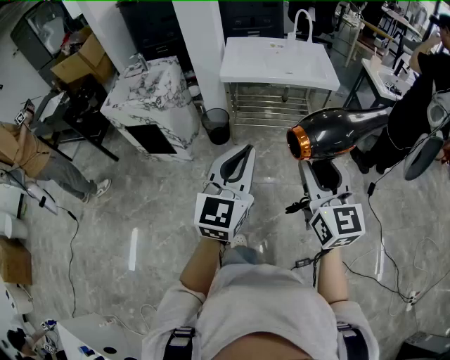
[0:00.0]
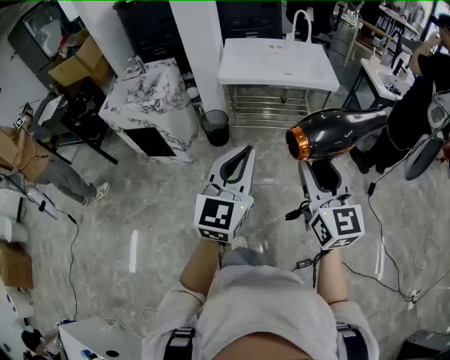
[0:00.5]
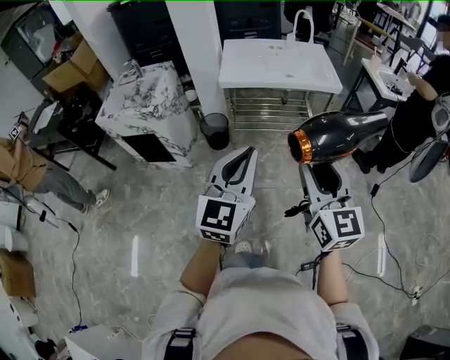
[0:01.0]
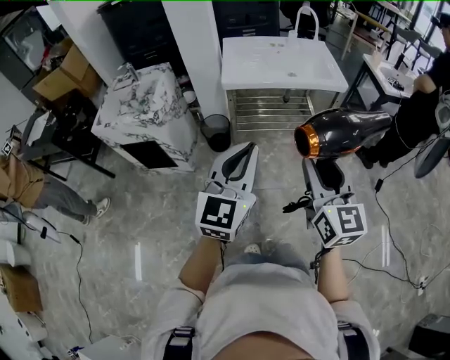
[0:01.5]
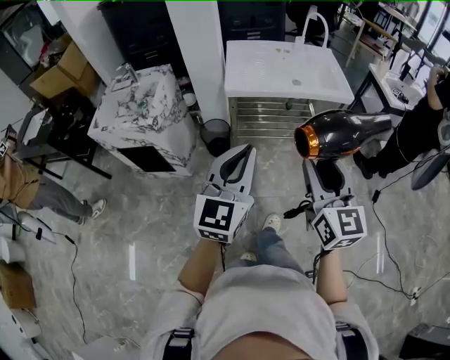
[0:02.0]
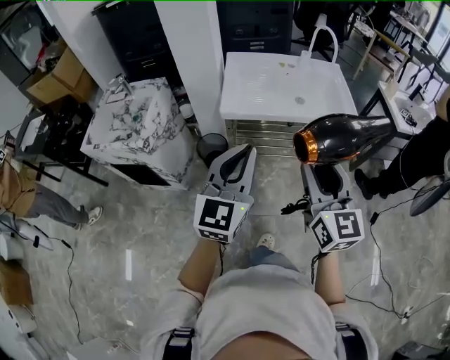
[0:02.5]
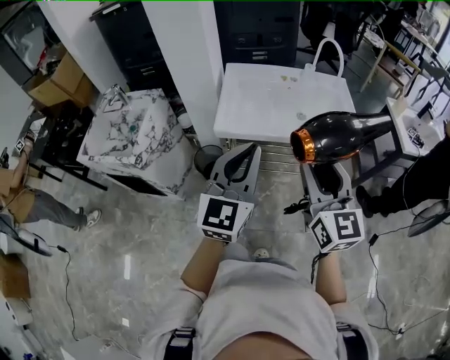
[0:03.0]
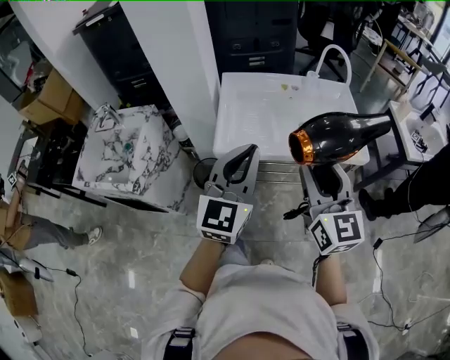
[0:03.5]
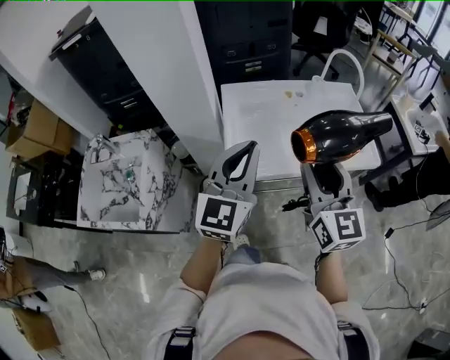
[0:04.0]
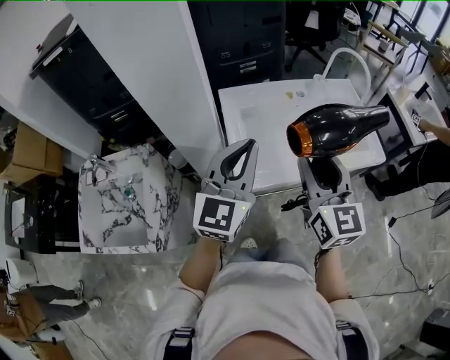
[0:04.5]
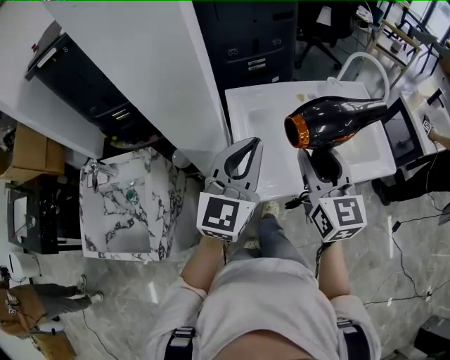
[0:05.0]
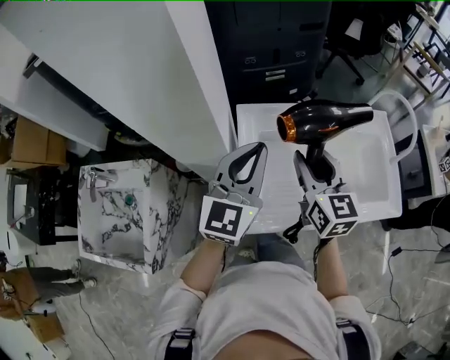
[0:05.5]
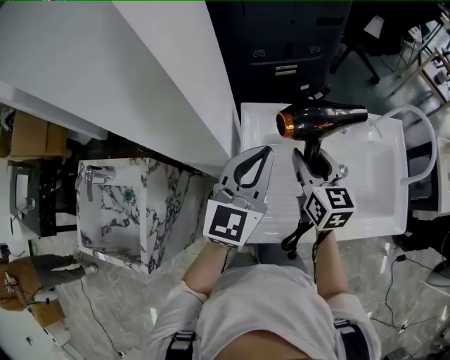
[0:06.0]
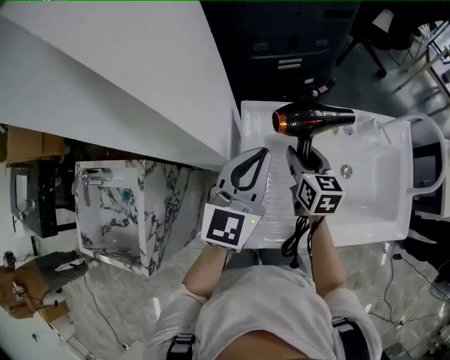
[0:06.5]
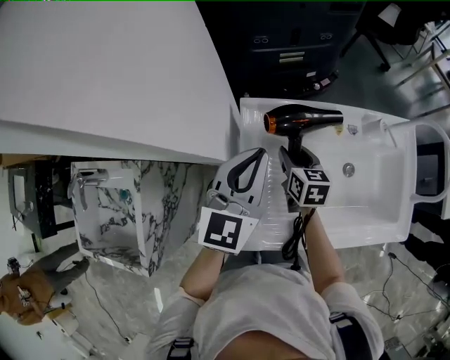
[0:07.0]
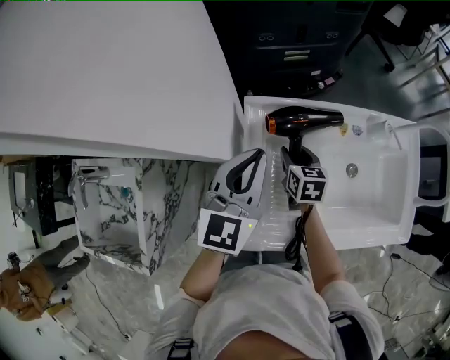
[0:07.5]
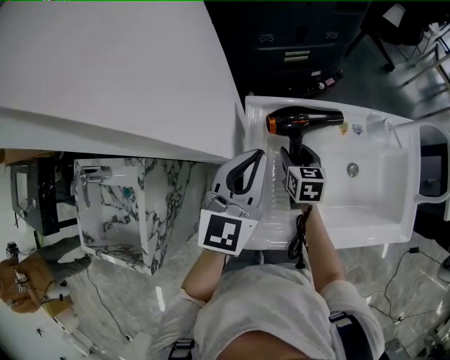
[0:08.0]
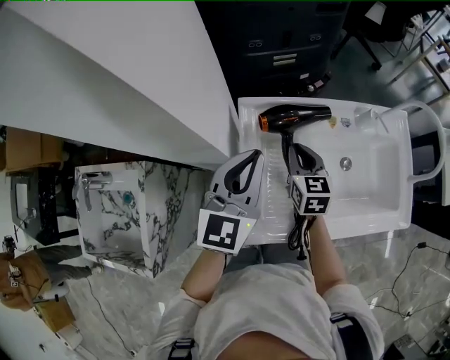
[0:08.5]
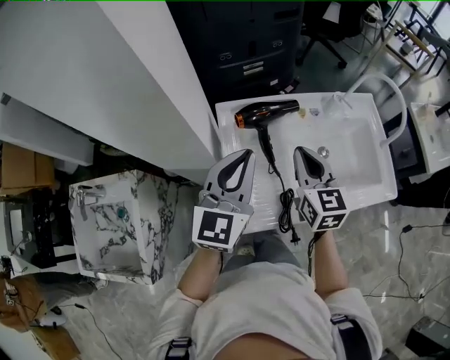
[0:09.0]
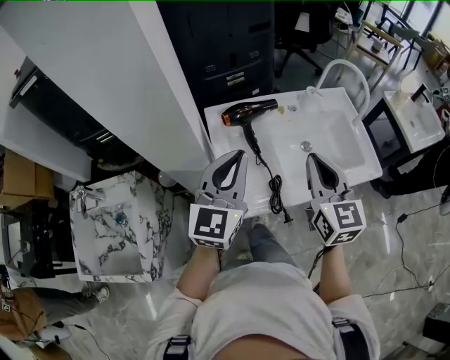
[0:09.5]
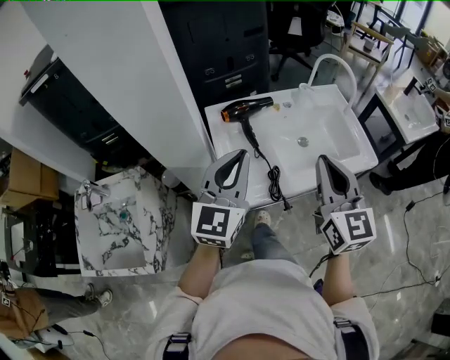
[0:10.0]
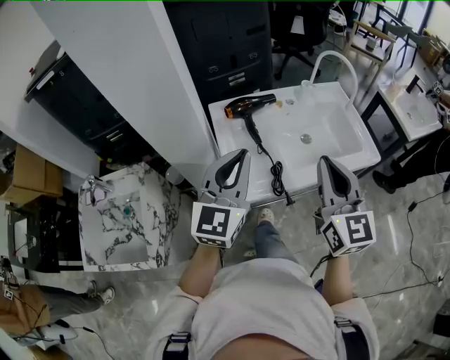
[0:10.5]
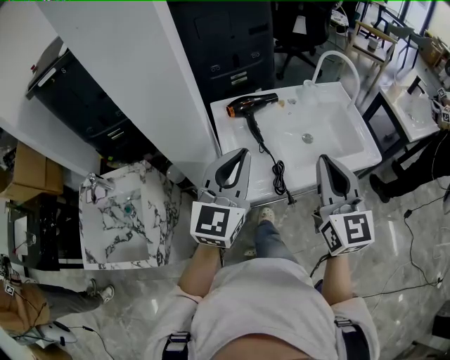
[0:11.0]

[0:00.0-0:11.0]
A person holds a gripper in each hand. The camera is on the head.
0:00.0 to 0:02.0: The grippers both shift forward and to the left by roughly 20 cm.
0:02.0 to 0:03.5: The grippers both shift forward by some 35 cm.
0:03.5 to 0:05.5: Both grippers travel together forward and to the left, approximately 35 cm.
0:05.5 to 0:07.5: The left gripper shifts roughly 15 cm forward and downward. The right gripper moves downward and forward, roughly 30 cm, and changes its angle by about 30 degrees.
0:07.5 to 0:09.0: The right gripper moves upward and backward, roughly 25 cm, turns by approximately 30 degrees, and closes. Meanwhile the left gripper shifts roughly 10 cm backward and upward.
0:09.0 to 0:11.0: The right gripper goes about 25 cm backward and upward, and turns by approximately 20 degrees; the left gripper travels backward by some 15 cm.

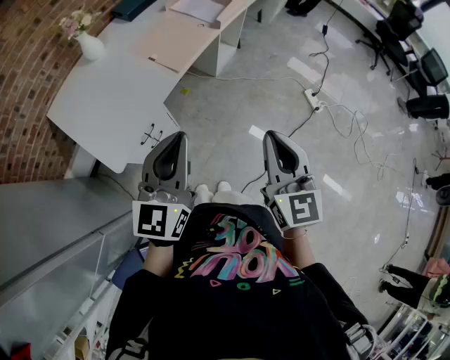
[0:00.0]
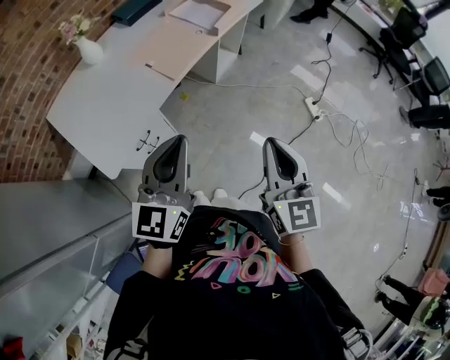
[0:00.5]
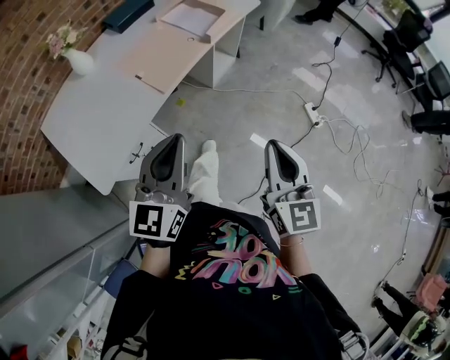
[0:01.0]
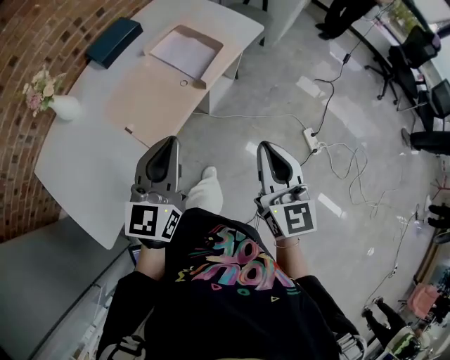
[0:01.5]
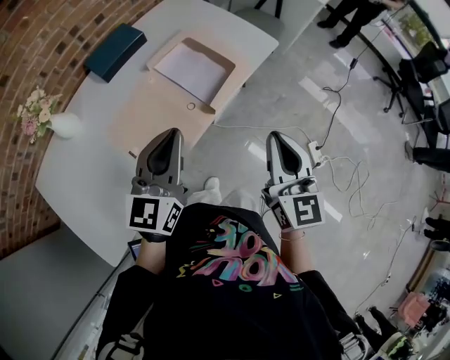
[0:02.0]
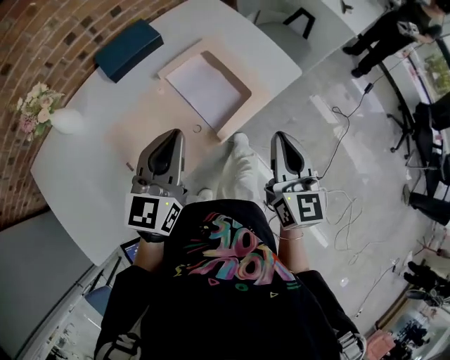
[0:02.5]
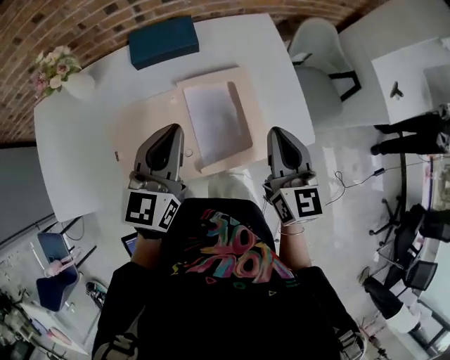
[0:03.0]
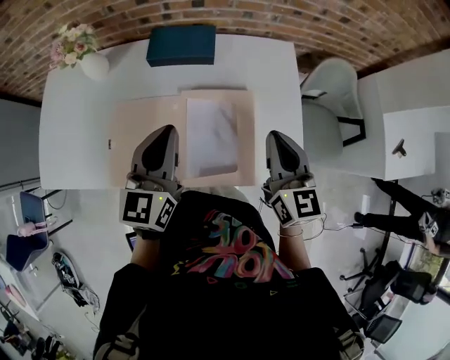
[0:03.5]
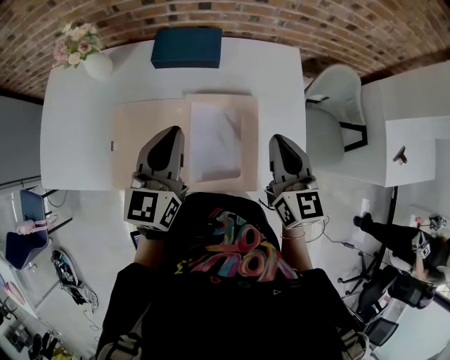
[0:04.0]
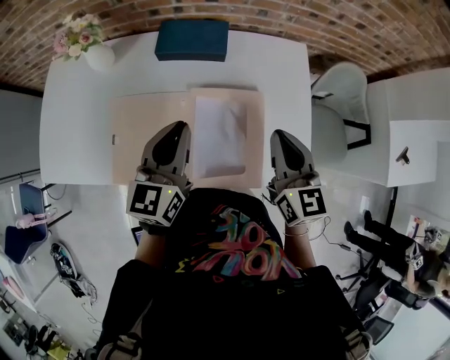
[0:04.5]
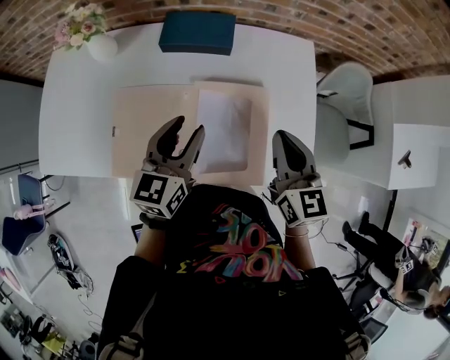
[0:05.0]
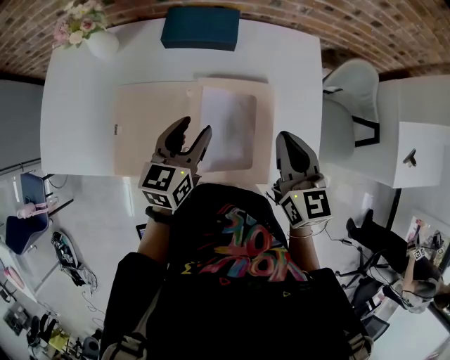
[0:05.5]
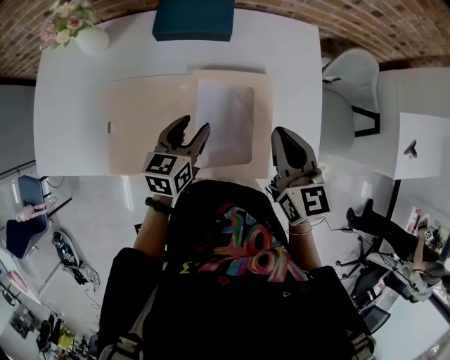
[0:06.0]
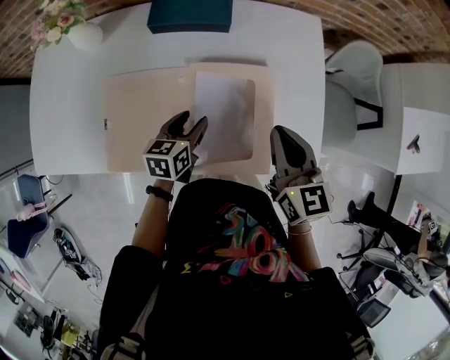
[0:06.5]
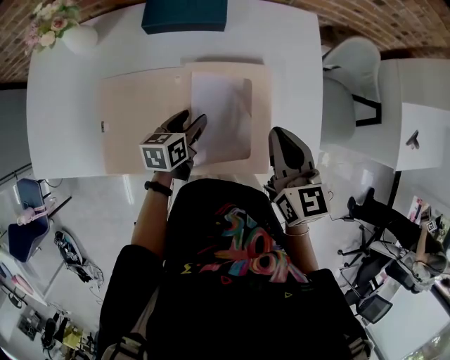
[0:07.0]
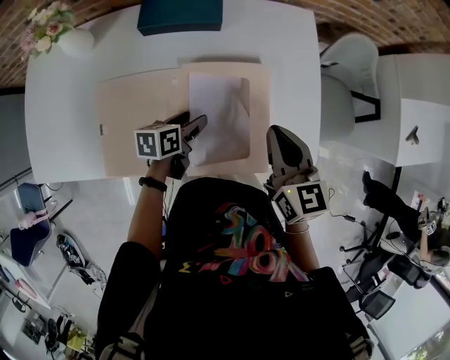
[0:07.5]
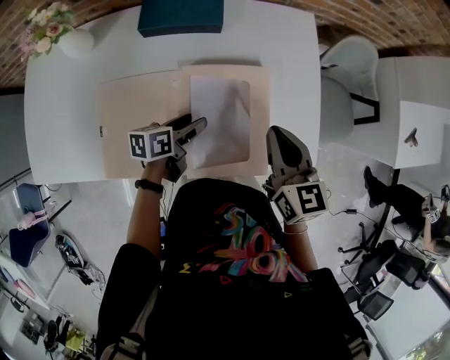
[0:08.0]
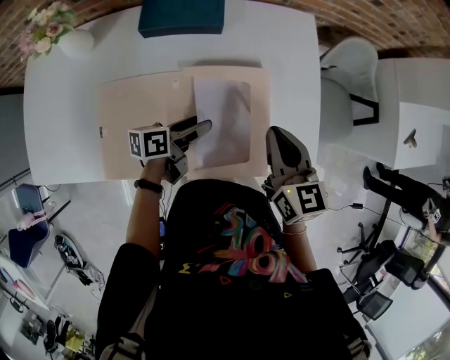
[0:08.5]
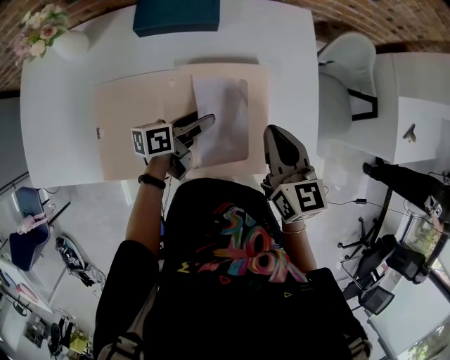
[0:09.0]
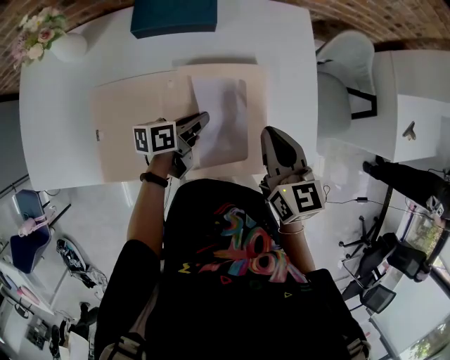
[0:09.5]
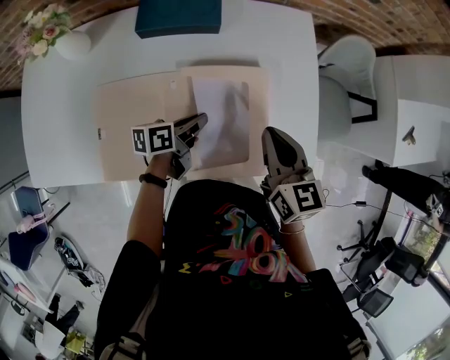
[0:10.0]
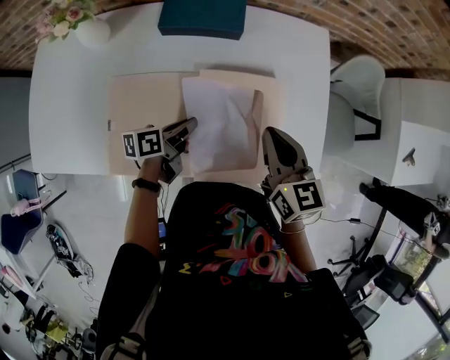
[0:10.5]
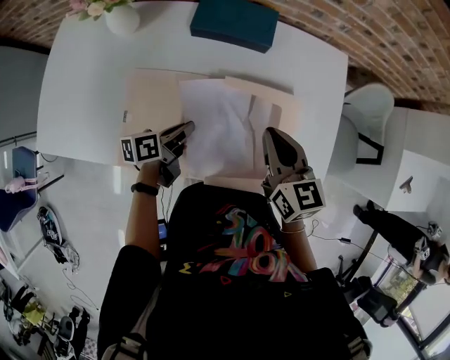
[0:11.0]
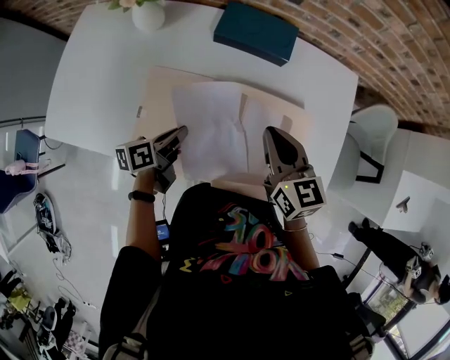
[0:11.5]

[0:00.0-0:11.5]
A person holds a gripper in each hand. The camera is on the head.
0:00.0 to 0:02.0: The two grippers travel together, forward, some 50 cm.
0:02.0 to 0:04.0: The right gripper moves approximately 40 cm, and swivels about 50 degrees. The left gripper moves about 30 cm, and changes its angle by roughly 50 degrees.
0:04.0 to 0:06.0: The left gripper goes some 20 cm downward, changes its angle by some 30 degrees, and opens up; the right gripper moves downward, approximately 5 cm.
0:06.0 to 0:07.5: The left gripper moves downward, some 10 cm, and changes its angle by approximately 30 degrees.
0:07.5 to 0:09.5: The left gripper closes its fingers.
0:09.5 to 0:11.5: Both grippers move to the left, some 15 cm. The left gripper changes its angle by roughly 30 degrees; the right gripper swivels approximately 20 degrees.

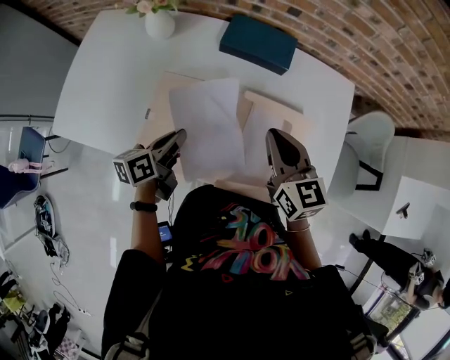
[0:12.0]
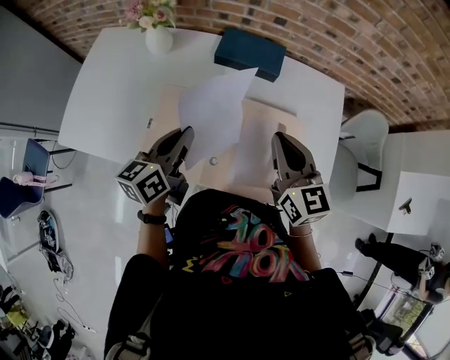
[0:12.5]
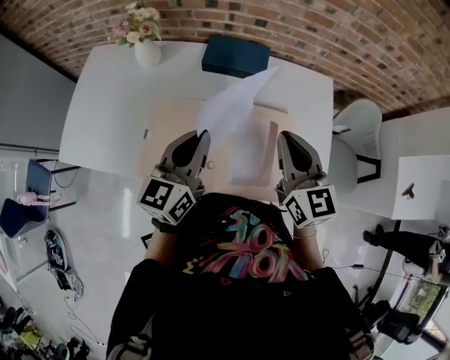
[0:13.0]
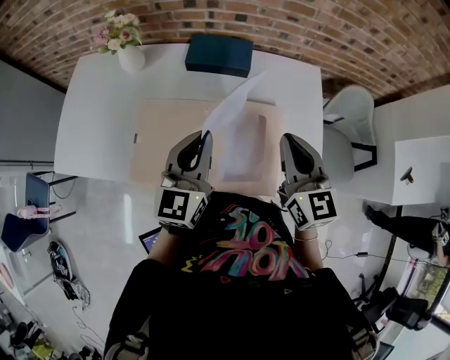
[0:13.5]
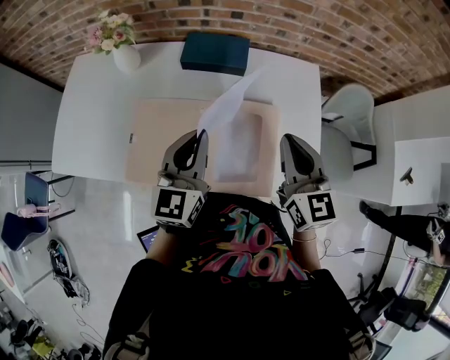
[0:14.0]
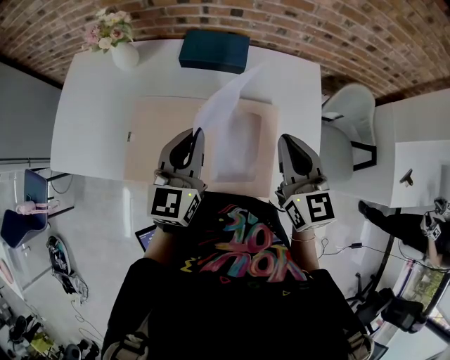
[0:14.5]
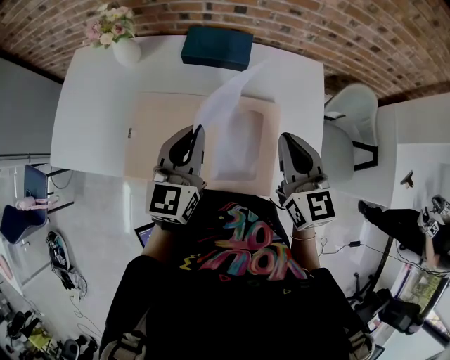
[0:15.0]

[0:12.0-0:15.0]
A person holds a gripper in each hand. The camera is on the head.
0:12.0 to 0:13.5: The left gripper shifts roughly 20 cm upward and to the right, and rolls clockwise, seen from behind, by about 50 degrees, while the right gripper goes about 15 cm to the right, upward and backward.
0:13.5 to 0:15.0: The grippers stay close to where they were, moving slightly.

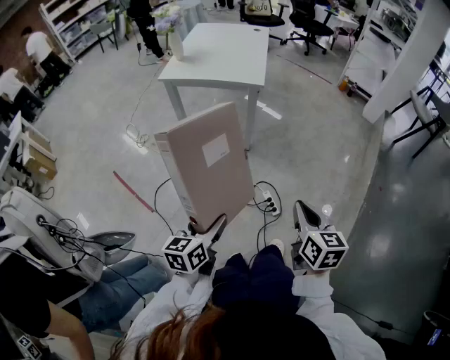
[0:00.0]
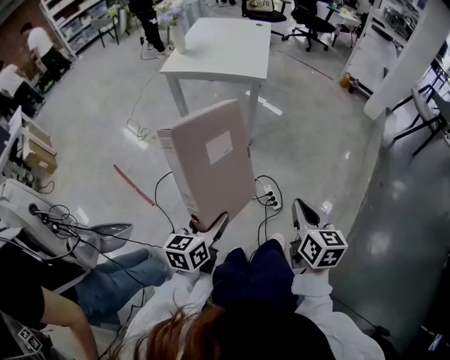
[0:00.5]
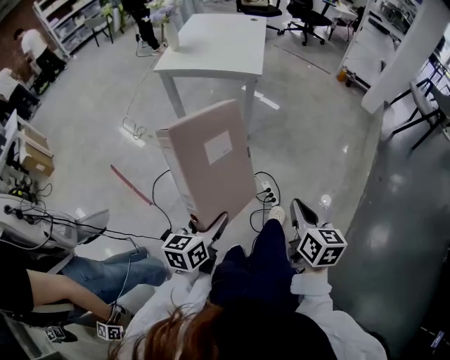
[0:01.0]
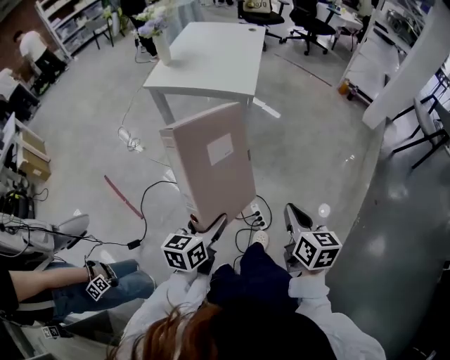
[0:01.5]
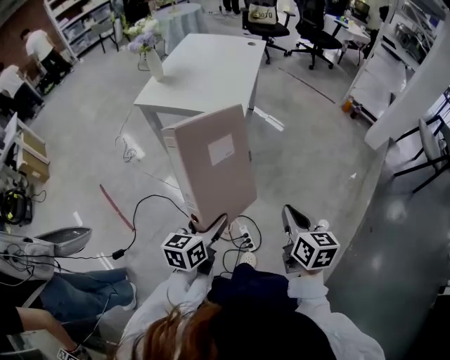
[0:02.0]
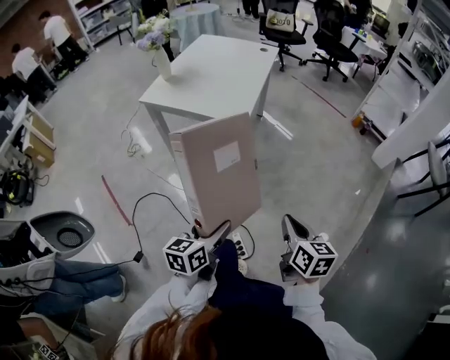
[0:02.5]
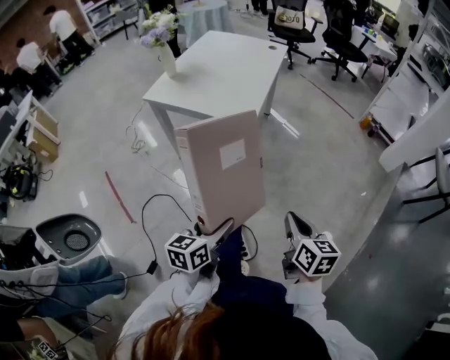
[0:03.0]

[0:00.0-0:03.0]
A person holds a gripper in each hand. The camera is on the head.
0:00.0 to 0:01.5: The right gripper is displaced forward by some 10 cm; the left gripper moves forward and to the right, roughly 15 cm.
0:01.5 to 0:03.0: Both grippers travel together forward and to the right, approximately 20 cm.
